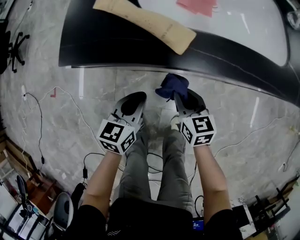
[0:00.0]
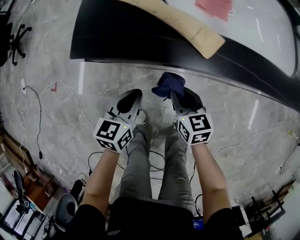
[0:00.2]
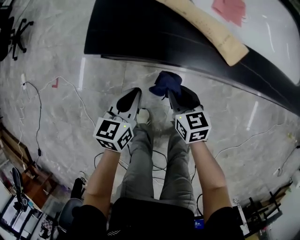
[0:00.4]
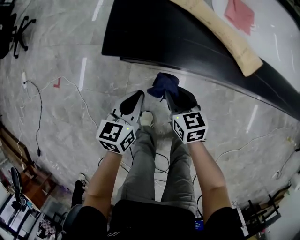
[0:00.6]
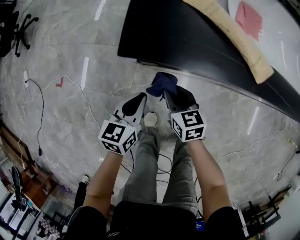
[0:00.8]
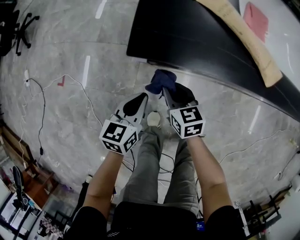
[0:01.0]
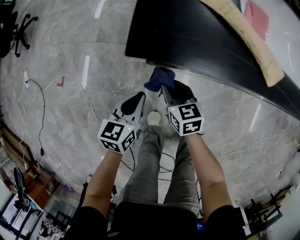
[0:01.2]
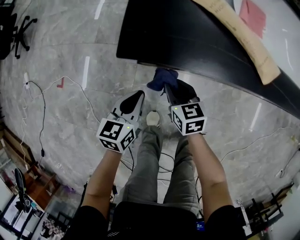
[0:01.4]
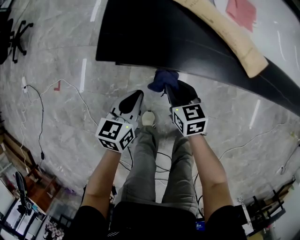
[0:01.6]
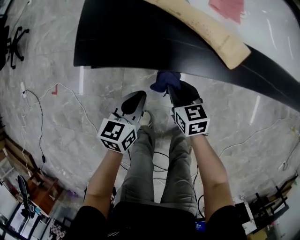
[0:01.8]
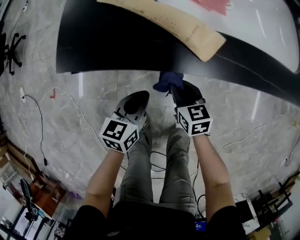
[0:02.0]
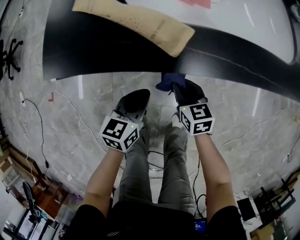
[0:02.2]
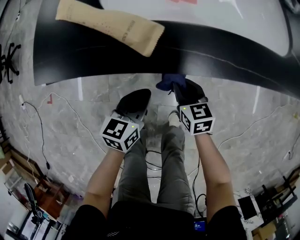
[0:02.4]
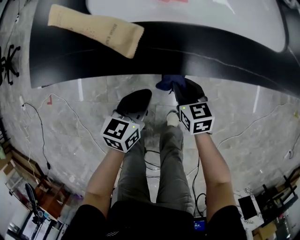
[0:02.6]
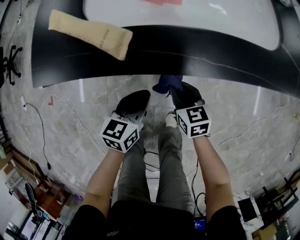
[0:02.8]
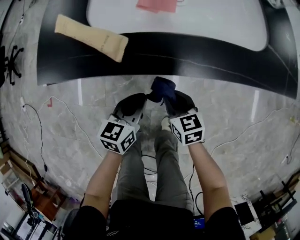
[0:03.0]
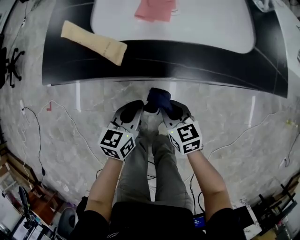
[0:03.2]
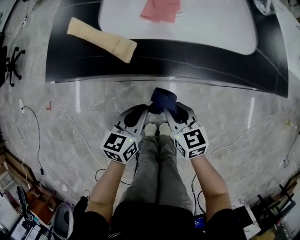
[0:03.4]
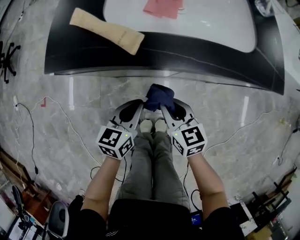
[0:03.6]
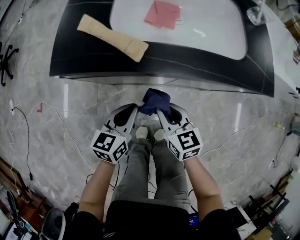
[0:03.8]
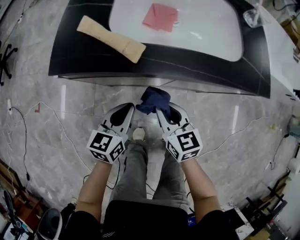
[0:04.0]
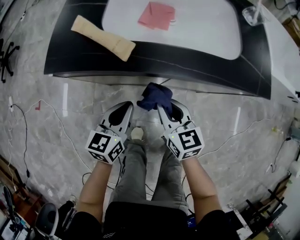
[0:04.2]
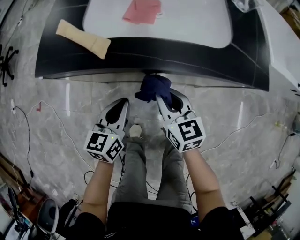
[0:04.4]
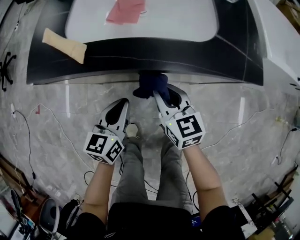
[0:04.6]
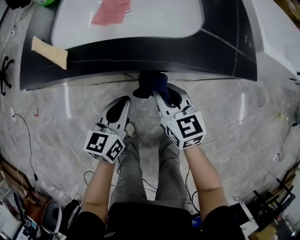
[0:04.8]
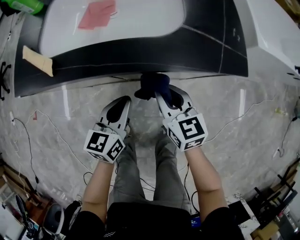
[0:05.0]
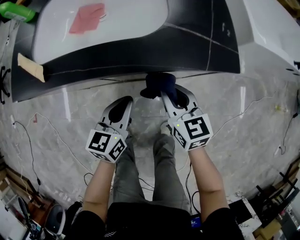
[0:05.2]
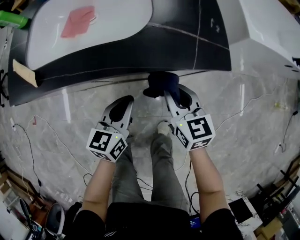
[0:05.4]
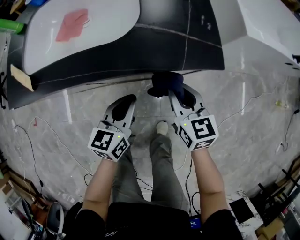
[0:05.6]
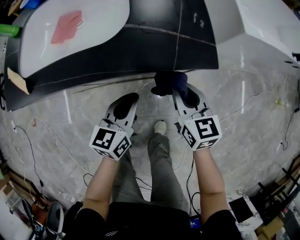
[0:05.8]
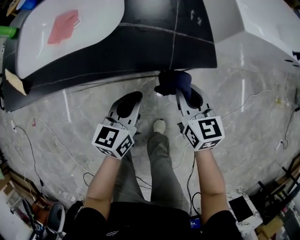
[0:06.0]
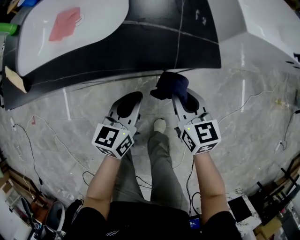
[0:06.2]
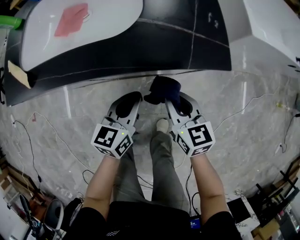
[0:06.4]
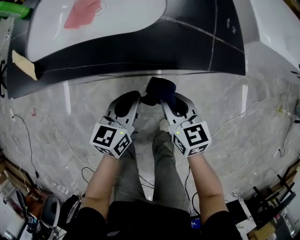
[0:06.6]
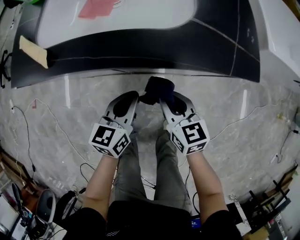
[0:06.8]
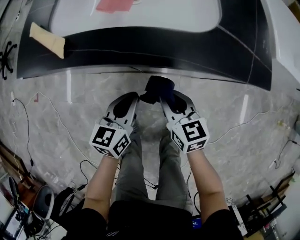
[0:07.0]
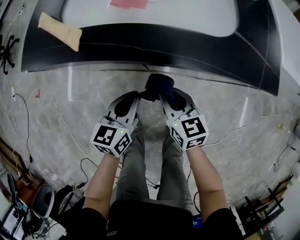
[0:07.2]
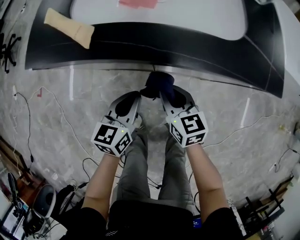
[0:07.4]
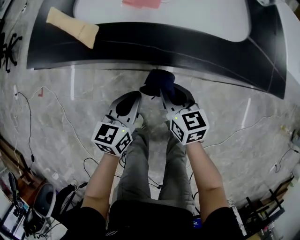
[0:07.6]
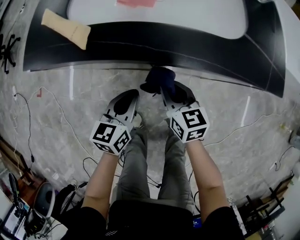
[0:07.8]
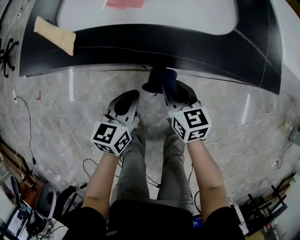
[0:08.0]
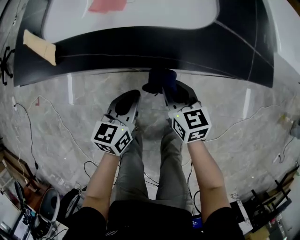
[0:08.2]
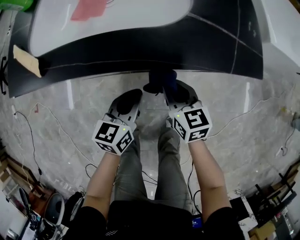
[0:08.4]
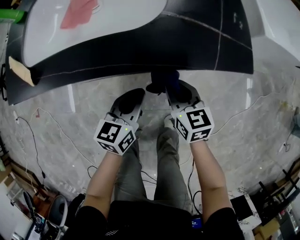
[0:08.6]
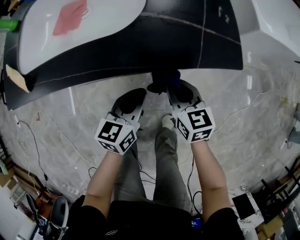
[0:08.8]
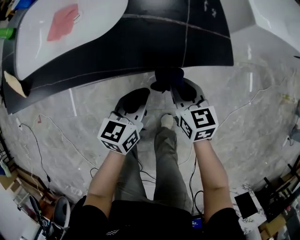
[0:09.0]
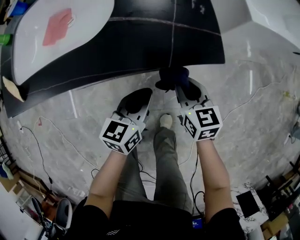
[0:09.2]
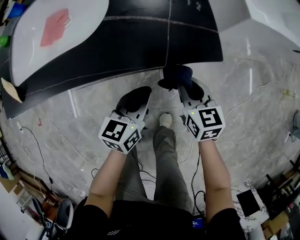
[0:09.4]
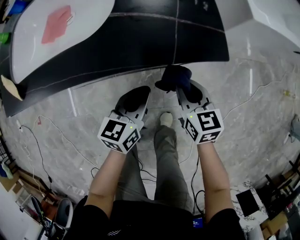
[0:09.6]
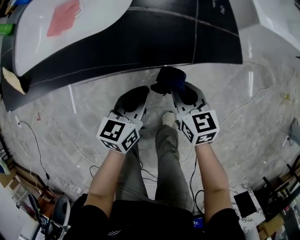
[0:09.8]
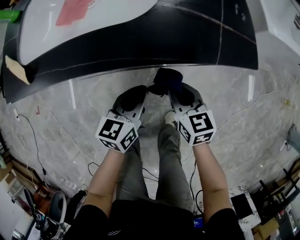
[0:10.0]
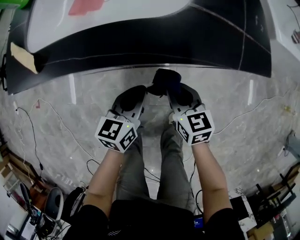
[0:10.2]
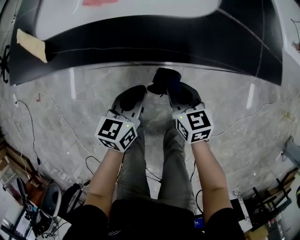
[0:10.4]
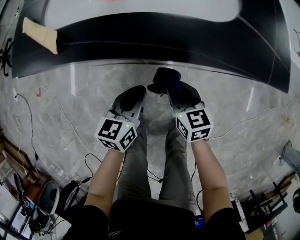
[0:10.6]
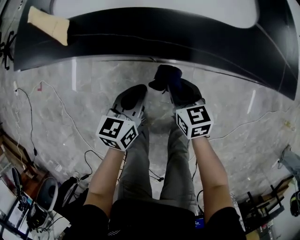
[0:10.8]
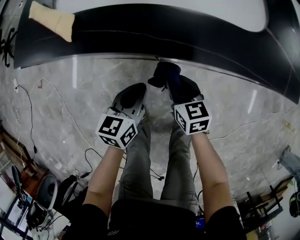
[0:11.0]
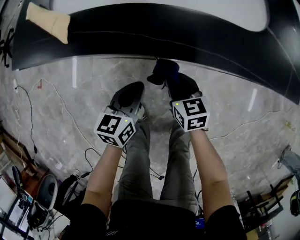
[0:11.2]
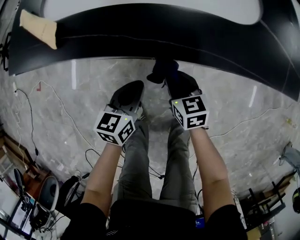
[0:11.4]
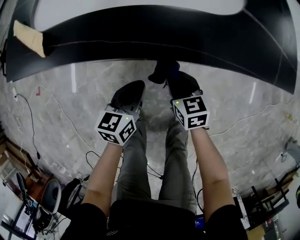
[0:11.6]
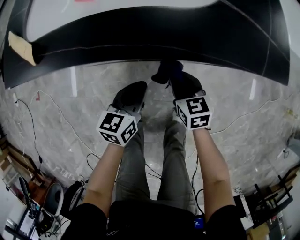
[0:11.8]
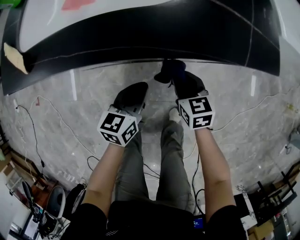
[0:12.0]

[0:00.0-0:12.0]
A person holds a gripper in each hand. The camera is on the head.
0:00.0 to 0:01.6: The two grippers go about 15 cm to the left.
0:01.6 to 0:03.0: The grippers both shift to the right by some 25 cm.
0:03.0 to 0:04.4: The left gripper shifts some 10 cm upward, while the right gripper heads upward and to the right, covering some 15 cm.
0:04.4 to 0:06.0: The two grippers go approximately 30 cm to the right.
0:06.0 to 0:07.6: The grippers both shift to the left by some 30 cm.
0:07.6 to 0:09.0: Both grippers move to the right, some 25 cm.
0:09.0 to 0:10.4: The two grippers go approximately 15 cm to the left.
0:10.4 to 0:12.0: Both grippers travel together to the right, approximately 5 cm.

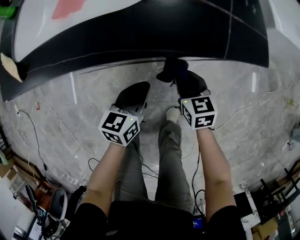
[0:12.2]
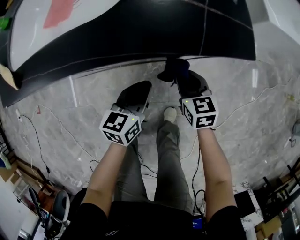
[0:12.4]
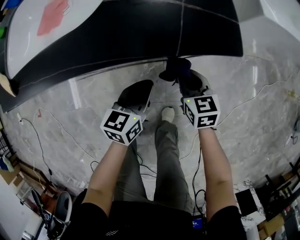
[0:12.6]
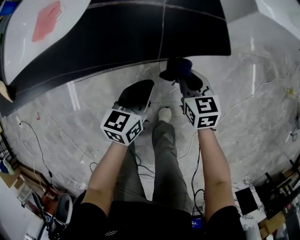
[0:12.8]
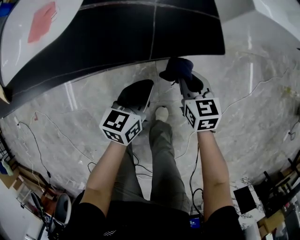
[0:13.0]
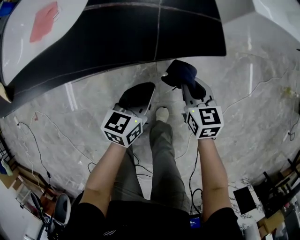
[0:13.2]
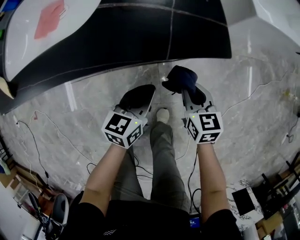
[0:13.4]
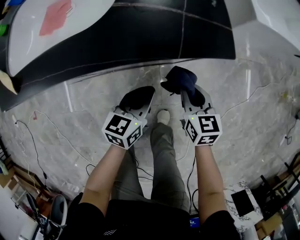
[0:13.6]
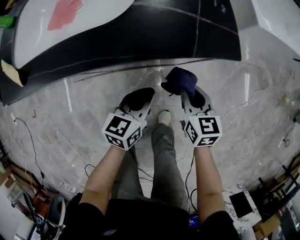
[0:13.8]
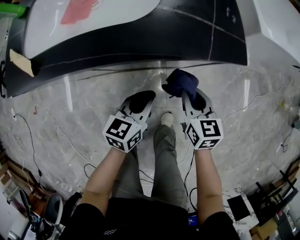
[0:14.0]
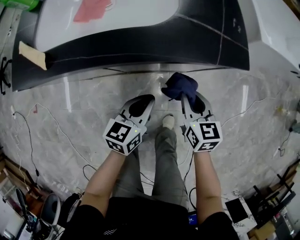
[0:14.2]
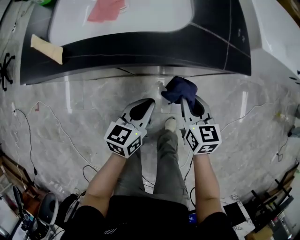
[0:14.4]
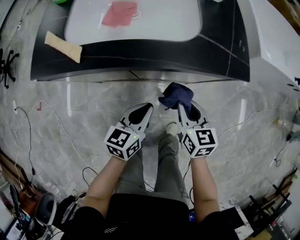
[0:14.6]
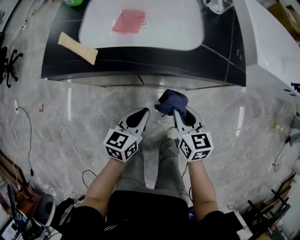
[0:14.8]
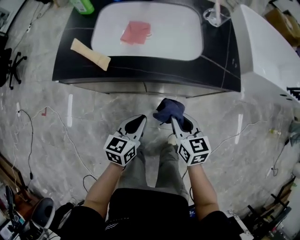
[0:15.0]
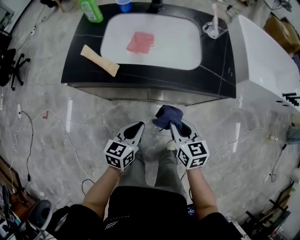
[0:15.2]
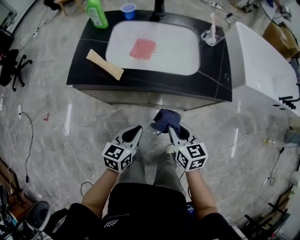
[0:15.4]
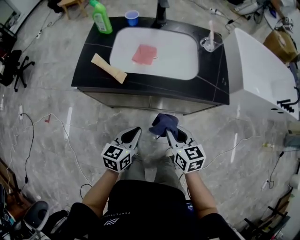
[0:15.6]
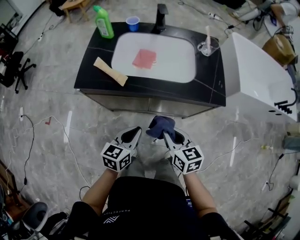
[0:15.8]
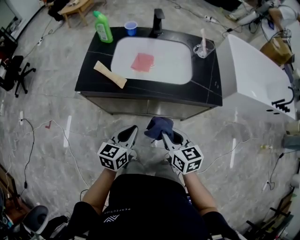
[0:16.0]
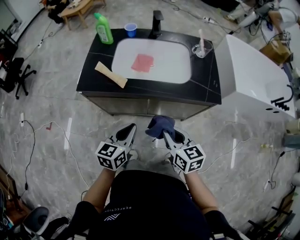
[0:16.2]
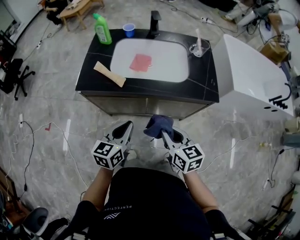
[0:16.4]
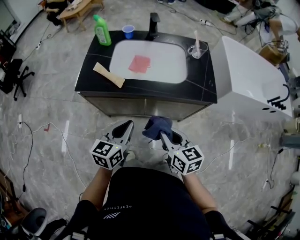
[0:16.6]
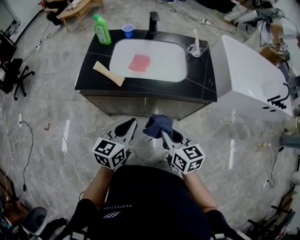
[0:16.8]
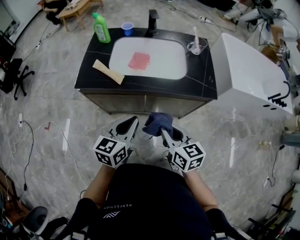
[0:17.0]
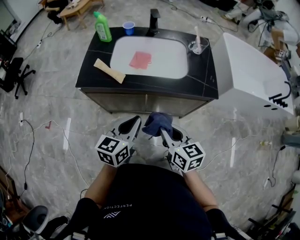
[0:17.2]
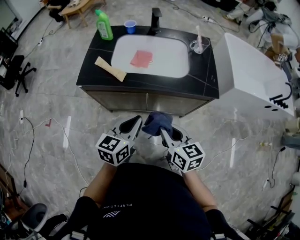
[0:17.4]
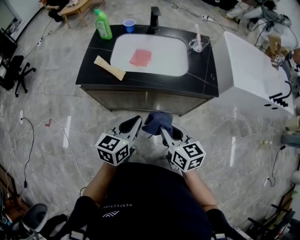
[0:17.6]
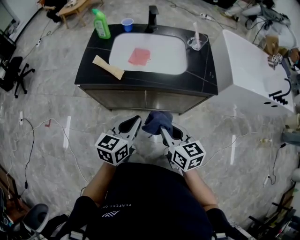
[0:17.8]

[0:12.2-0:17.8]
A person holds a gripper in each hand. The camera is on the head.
0:12.2 to 0:13.6: Both grippers travel together to the right, roughly 10 cm.
0:13.6 to 0:15.0: The left gripper moves to the left, upward and backward, approximately 25 cm. The right gripper moves to the left and upward, some 25 cm.
0:15.0 to 0:16.4: The left gripper moves upward and to the left, approximately 15 cm. The right gripper is displaced upward by roughly 15 cm.
0:16.4 to 0:17.8: The left gripper shifts by about 5 cm.

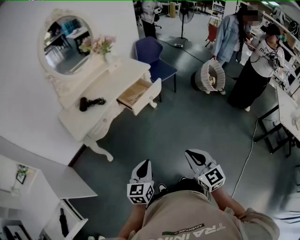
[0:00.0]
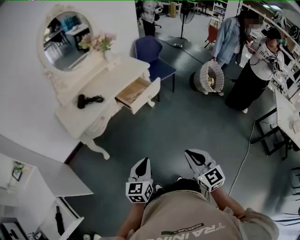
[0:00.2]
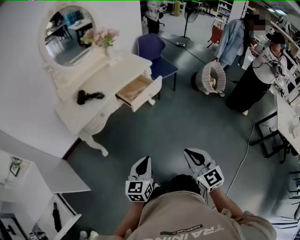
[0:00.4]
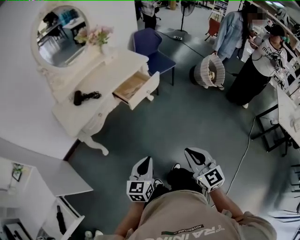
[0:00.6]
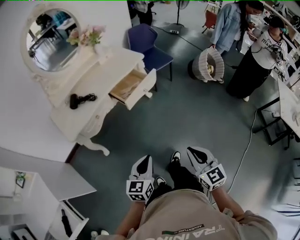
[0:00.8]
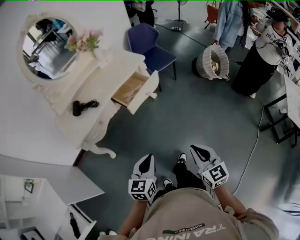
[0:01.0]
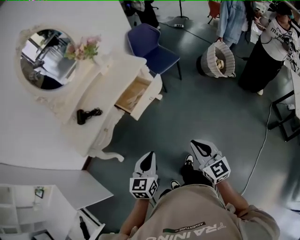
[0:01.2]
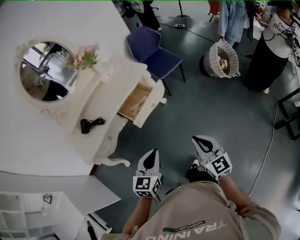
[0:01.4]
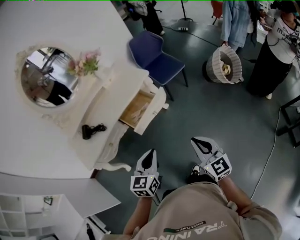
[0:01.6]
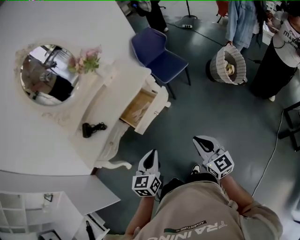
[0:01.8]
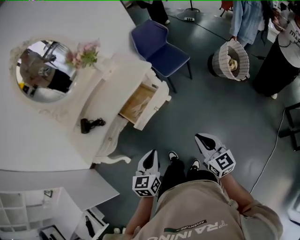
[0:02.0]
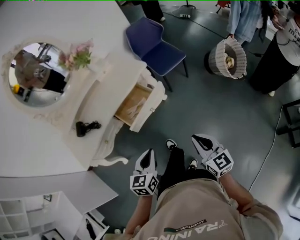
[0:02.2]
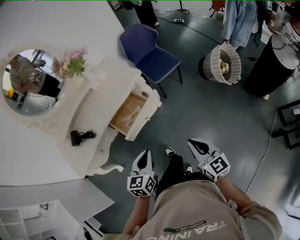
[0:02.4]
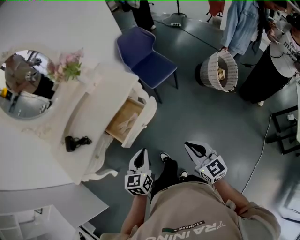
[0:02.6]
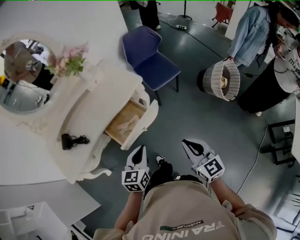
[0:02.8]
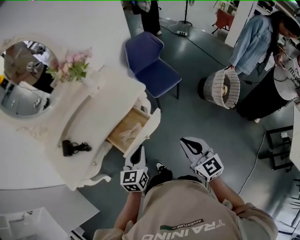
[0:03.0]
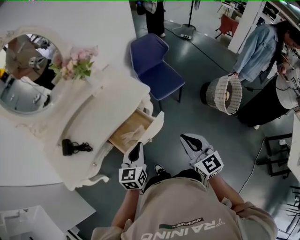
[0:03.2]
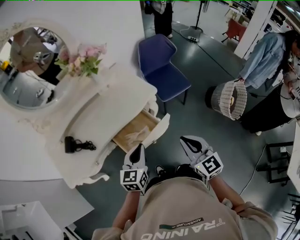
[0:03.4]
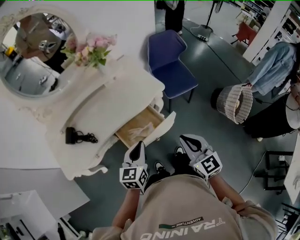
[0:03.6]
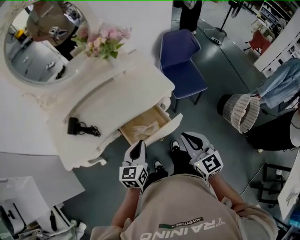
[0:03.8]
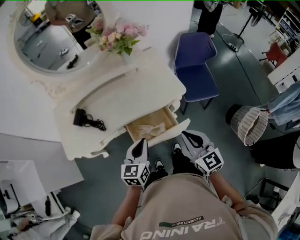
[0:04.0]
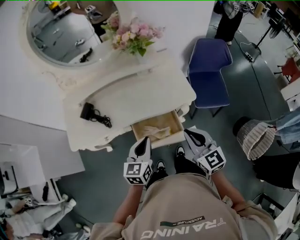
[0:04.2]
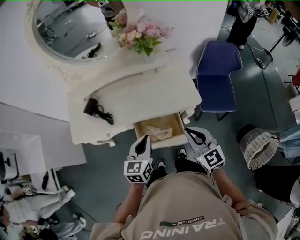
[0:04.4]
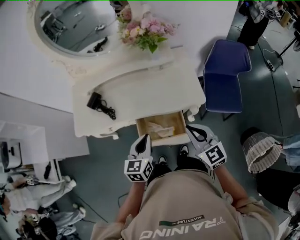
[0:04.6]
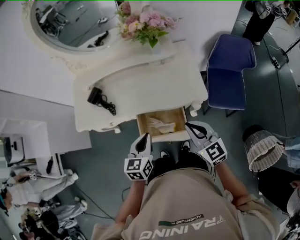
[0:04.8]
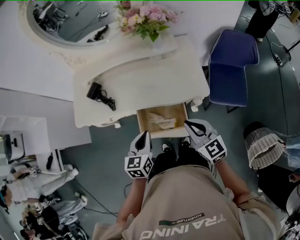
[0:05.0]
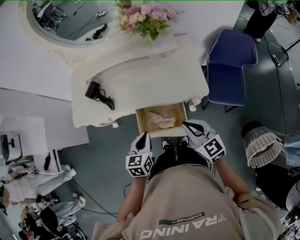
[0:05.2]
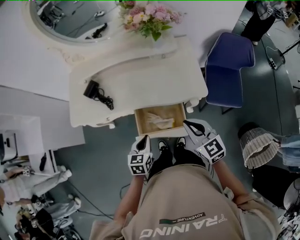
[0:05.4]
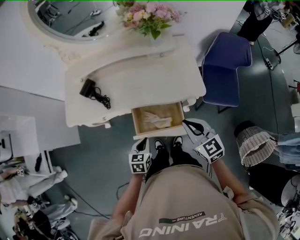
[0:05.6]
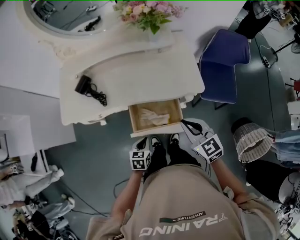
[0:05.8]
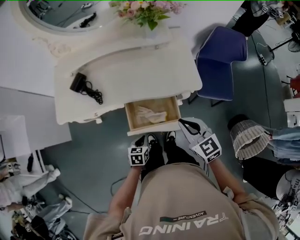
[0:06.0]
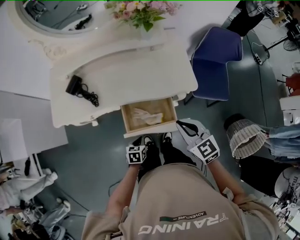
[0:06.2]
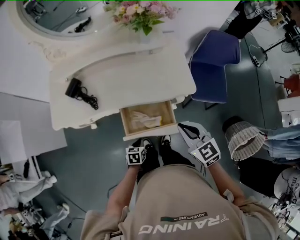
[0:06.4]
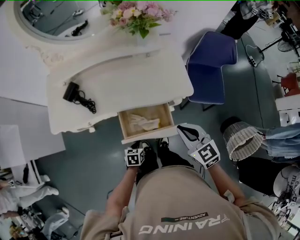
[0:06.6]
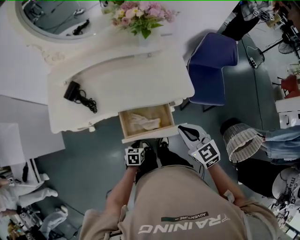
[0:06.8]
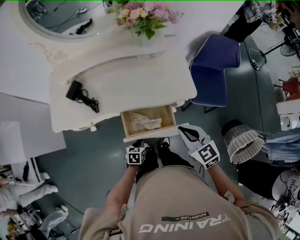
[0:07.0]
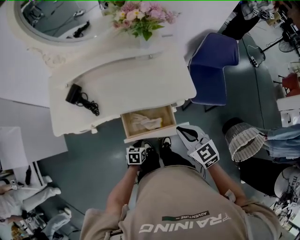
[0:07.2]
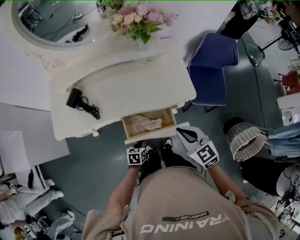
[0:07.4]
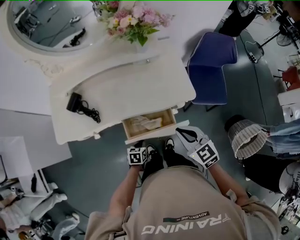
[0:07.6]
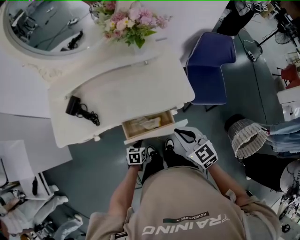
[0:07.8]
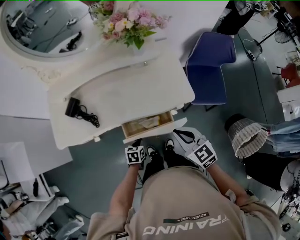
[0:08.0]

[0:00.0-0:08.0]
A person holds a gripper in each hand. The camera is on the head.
0:00.0 to 0:01.6: Both grippers move forward, about 25 cm.
0:01.6 to 0:03.2: Both grippers move forward, some 25 cm.
0:03.2 to 0:04.8: The left gripper ends up some 10 cm from where it was, and rotates roughly 40 degrees, while the right gripper ends up roughly 25 cm from where it was, and swivels roughly 40 degrees.
0:04.8 to 0:06.4: The left gripper travels downward by roughly 25 cm, and changes its angle by approximately 30 degrees.
0:06.4 to 0:08.0: The left gripper moves forward, some 10 cm.
